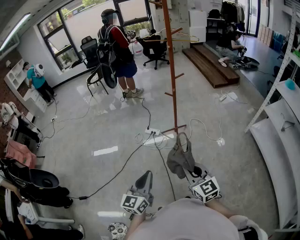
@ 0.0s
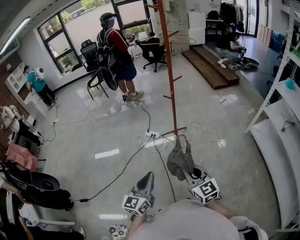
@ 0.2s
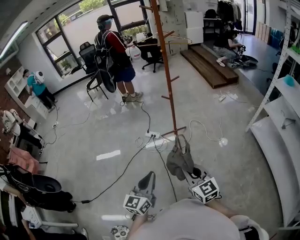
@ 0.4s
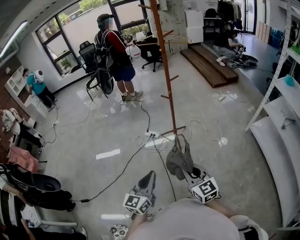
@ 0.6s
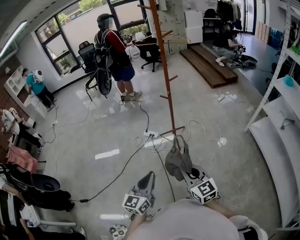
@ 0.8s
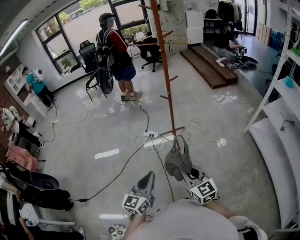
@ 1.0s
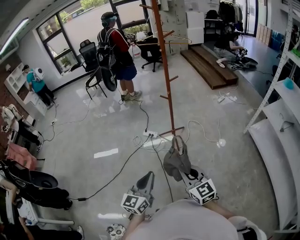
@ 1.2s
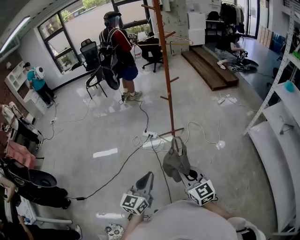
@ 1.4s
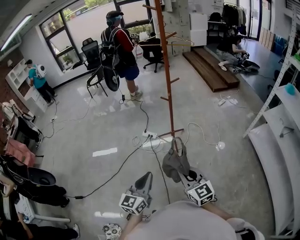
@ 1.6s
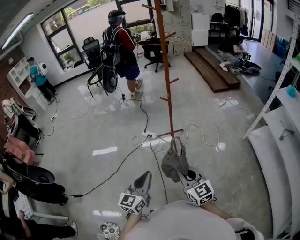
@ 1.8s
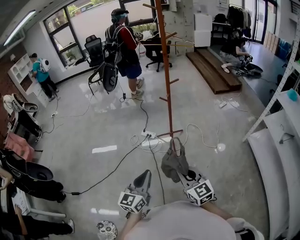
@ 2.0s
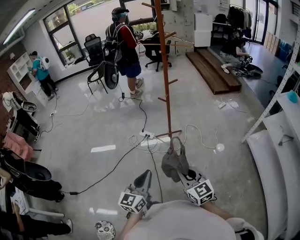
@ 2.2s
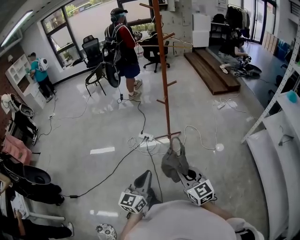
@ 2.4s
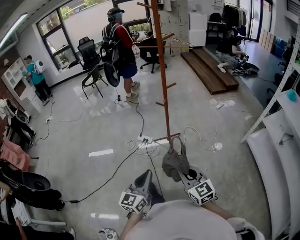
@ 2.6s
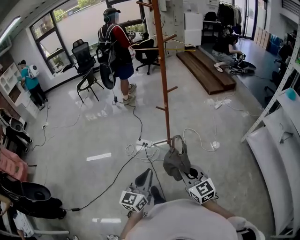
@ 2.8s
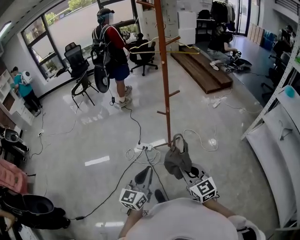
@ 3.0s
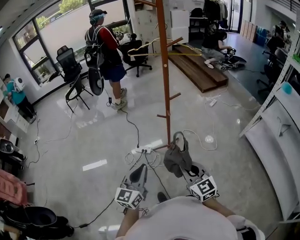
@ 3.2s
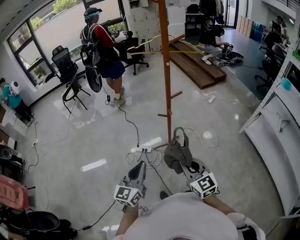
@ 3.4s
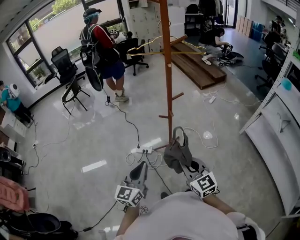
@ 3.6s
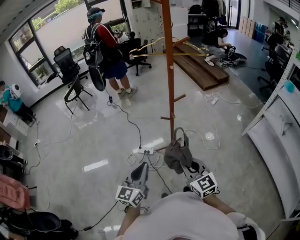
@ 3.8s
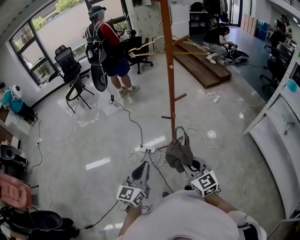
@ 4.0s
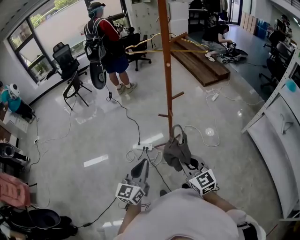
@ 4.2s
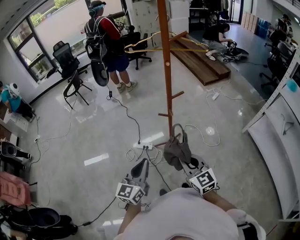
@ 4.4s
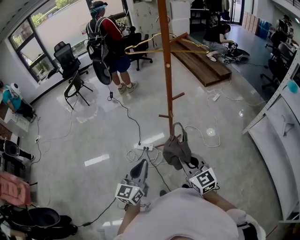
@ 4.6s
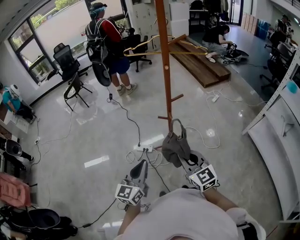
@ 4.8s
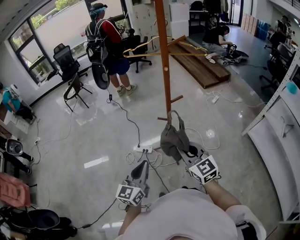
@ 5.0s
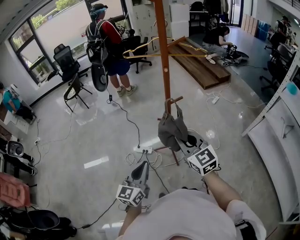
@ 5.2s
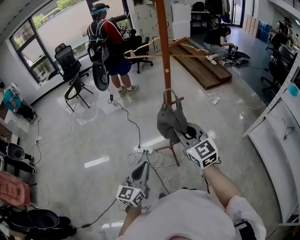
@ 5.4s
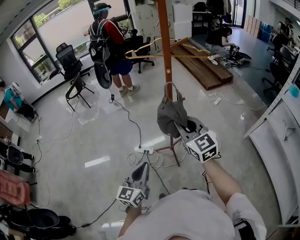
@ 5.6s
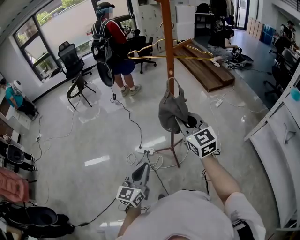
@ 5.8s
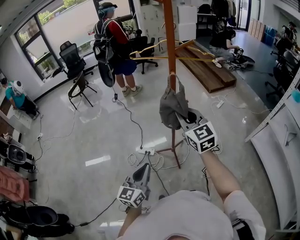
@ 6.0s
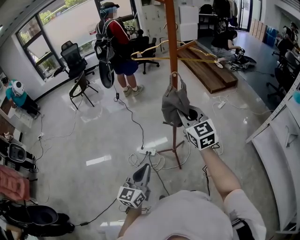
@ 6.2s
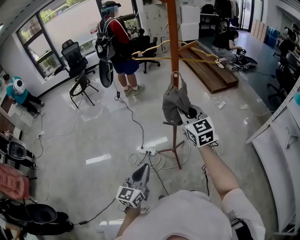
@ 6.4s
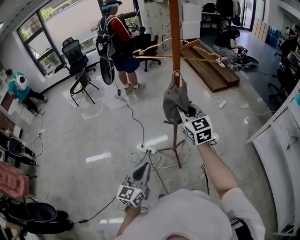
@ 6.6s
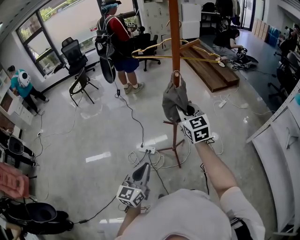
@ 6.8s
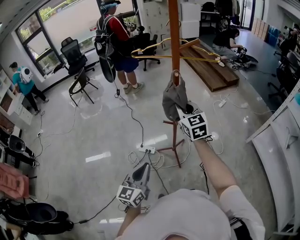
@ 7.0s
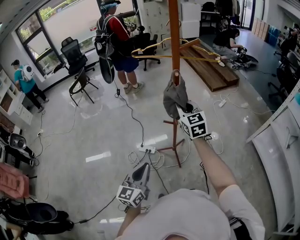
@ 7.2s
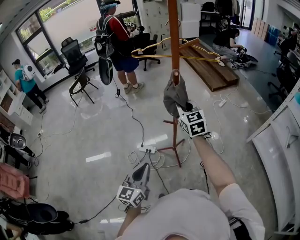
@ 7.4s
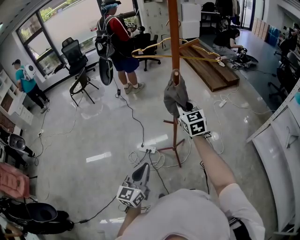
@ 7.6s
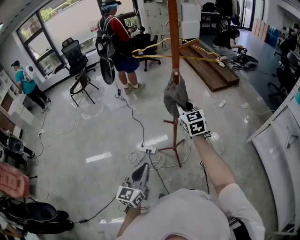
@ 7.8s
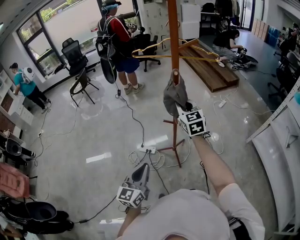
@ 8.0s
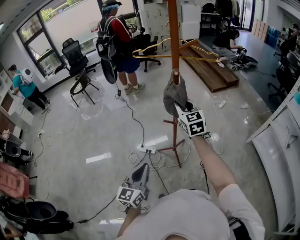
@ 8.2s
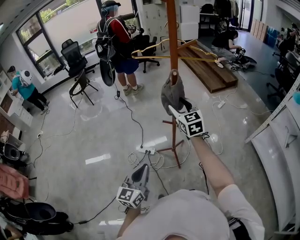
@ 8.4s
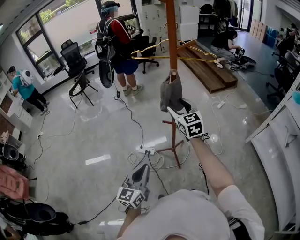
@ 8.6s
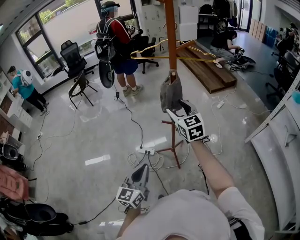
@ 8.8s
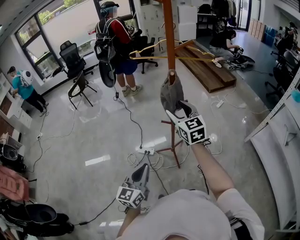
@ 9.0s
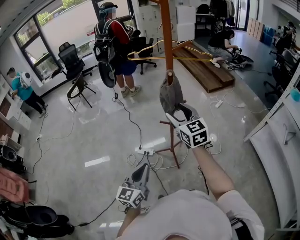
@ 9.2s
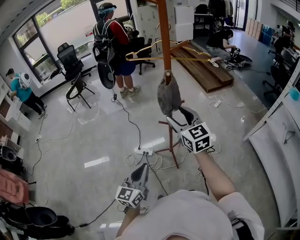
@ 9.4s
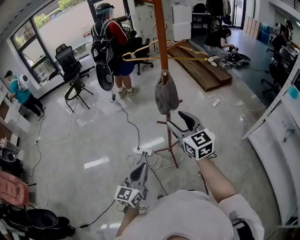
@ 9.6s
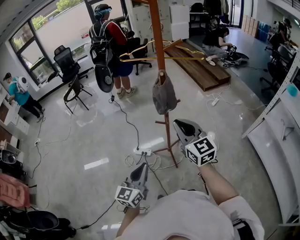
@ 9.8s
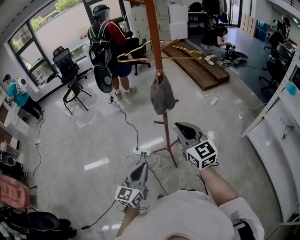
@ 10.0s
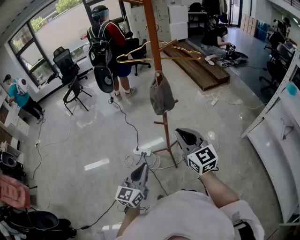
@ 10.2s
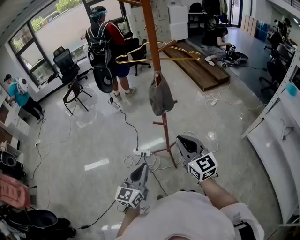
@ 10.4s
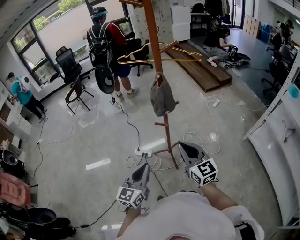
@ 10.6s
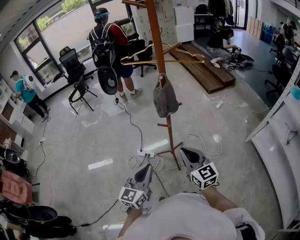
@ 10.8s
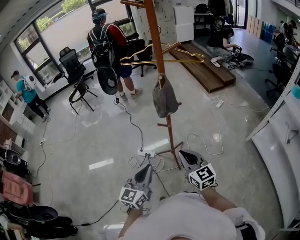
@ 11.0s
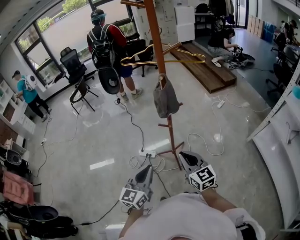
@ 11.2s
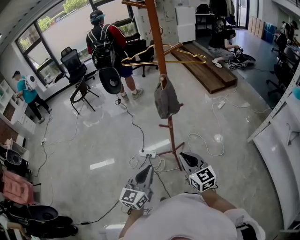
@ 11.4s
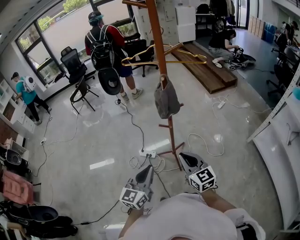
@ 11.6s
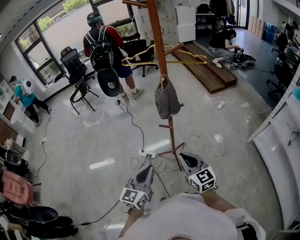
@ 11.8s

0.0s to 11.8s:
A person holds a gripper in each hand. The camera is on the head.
0.0s to 1.4s: The left gripper goes some 5 cm to the right.
1.4s to 3.0s: The grippers both shift forward by approximately 25 cm.
3.0s to 4.4s: Both grippers travel together forward, some 10 cm.
4.4s to 6.0s: The right gripper heads forward and upward, covering approximately 25 cm.
6.0s to 7.4s: The right gripper shifts about 10 cm forward and downward.
7.4s to 8.8s: The right gripper opens its fingers.
8.8s to 10.4s: The right gripper travels backward by approximately 15 cm, and closes its fingers.
10.4s to 11.8s: The right gripper heads downward, covering about 10 cm.

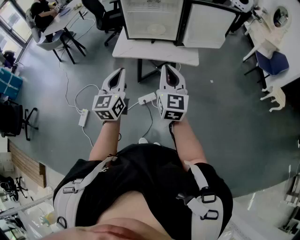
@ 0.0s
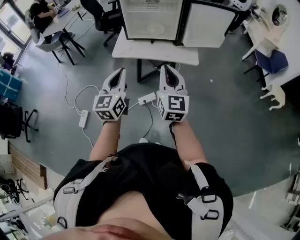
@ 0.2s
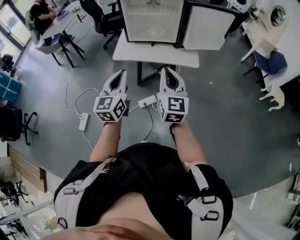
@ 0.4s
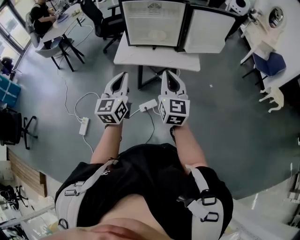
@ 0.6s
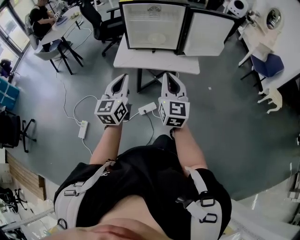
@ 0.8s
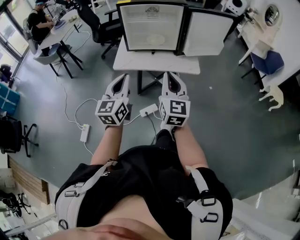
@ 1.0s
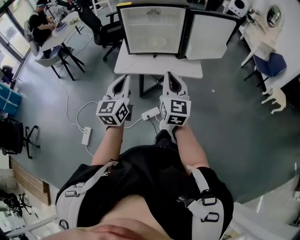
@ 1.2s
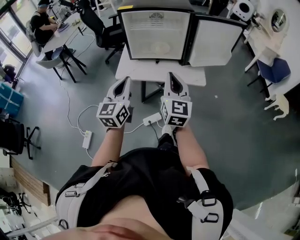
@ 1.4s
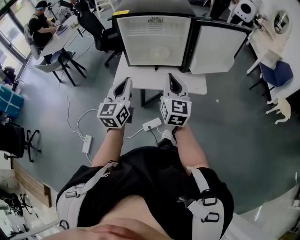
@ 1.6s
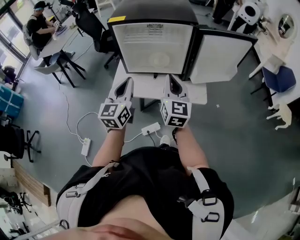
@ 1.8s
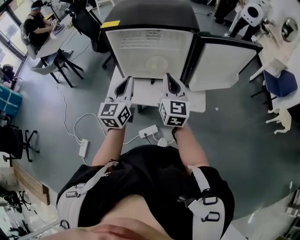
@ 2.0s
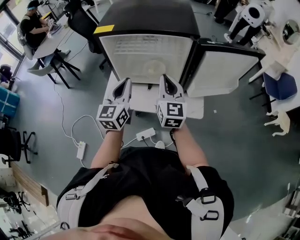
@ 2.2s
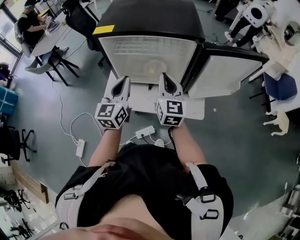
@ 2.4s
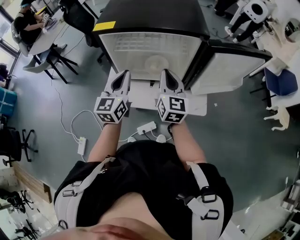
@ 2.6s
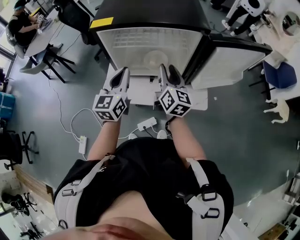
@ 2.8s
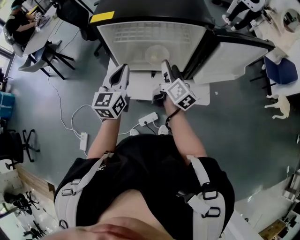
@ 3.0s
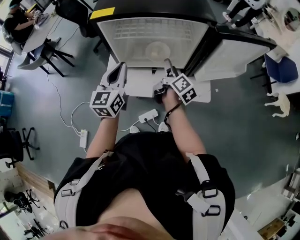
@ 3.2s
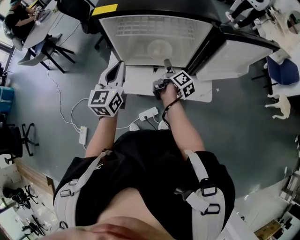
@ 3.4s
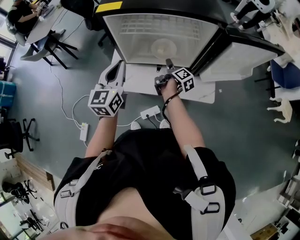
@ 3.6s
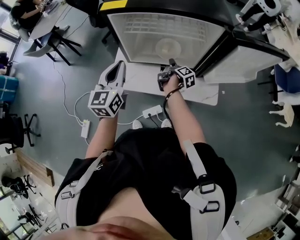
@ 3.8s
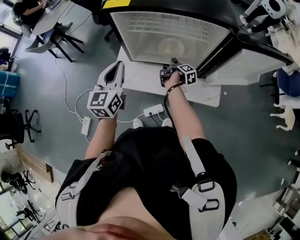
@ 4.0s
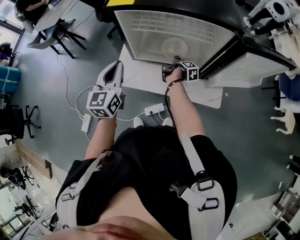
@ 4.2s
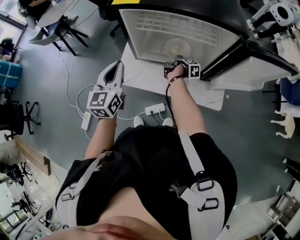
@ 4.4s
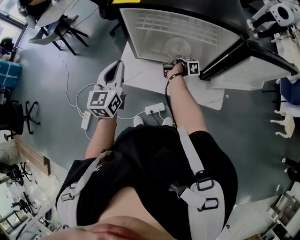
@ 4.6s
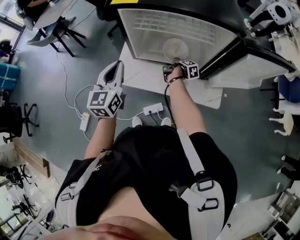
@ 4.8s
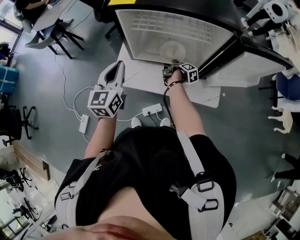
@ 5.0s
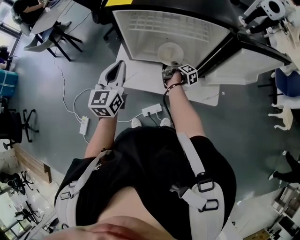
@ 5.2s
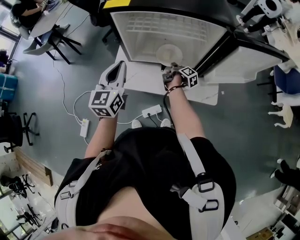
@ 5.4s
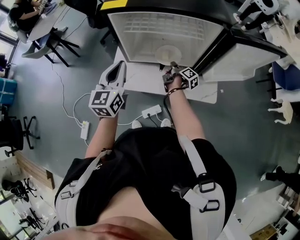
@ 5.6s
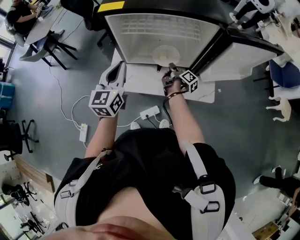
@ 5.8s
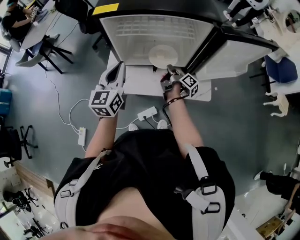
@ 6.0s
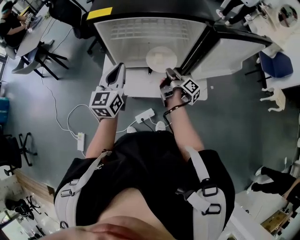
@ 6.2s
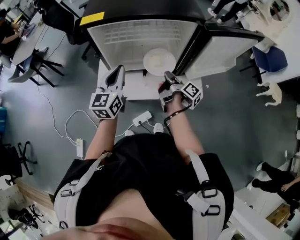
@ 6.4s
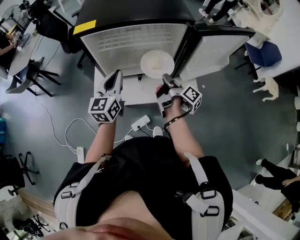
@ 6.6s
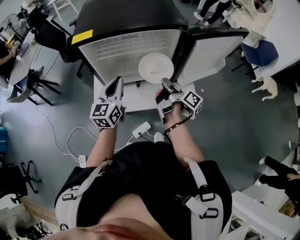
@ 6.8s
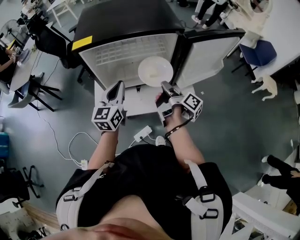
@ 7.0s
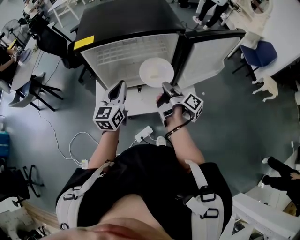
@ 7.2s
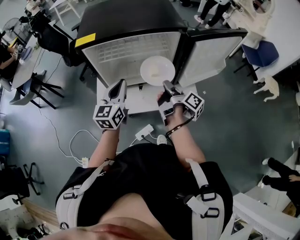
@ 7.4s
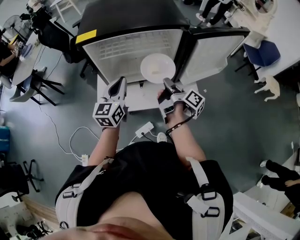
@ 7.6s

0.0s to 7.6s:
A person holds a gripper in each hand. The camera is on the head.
0.0s to 1.6s: The two grippers go roughly 20 cm forward.
1.6s to 3.0s: The grippers both shift forward by approximately 20 cm. The right gripper twists about 40 degrees clockwise, seen from behind, and opens up.
3.0s to 4.6s: The right gripper goes some 25 cm downward, and points its fingers roughly 40 degrees further downward, while the left gripper shifts about 10 cm to the left.
4.6s to 6.0s: The right gripper goes about 10 cm upward and backward, angles its fingers upward, by roughly 40 degrees, and closes. Meanwhile the left gripper travels to the right by some 5 cm.
6.0s to 7.6s: The left gripper travels to the right by some 5 cm. Meanwhile the right gripper moves upward and backward, approximately 15 cm.

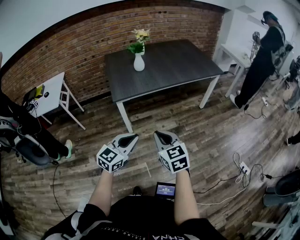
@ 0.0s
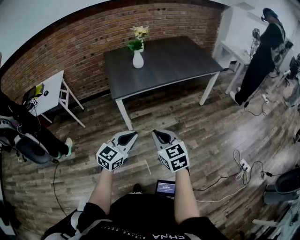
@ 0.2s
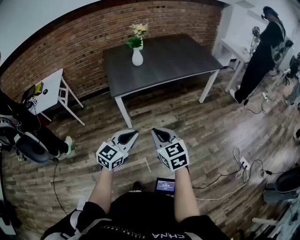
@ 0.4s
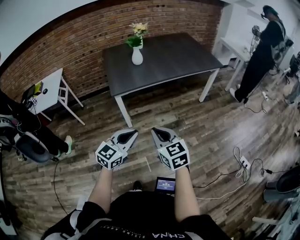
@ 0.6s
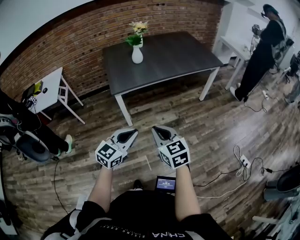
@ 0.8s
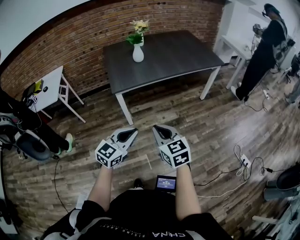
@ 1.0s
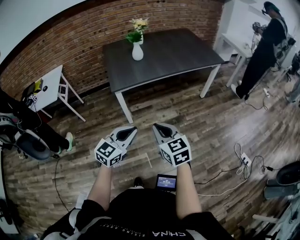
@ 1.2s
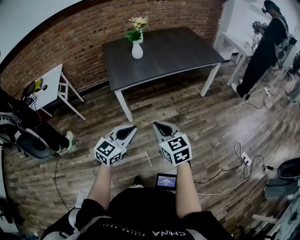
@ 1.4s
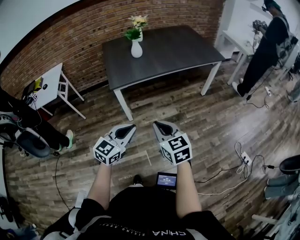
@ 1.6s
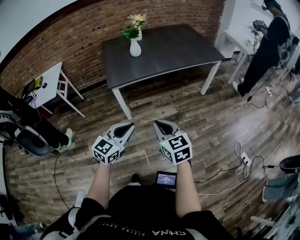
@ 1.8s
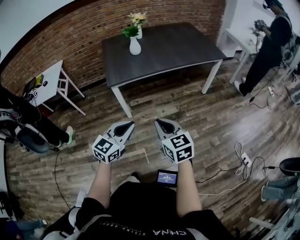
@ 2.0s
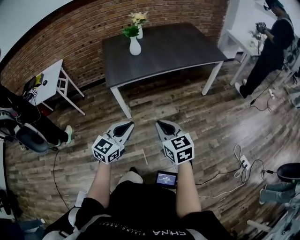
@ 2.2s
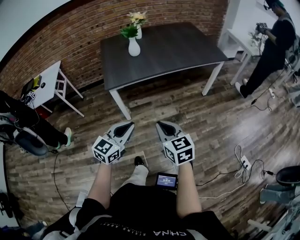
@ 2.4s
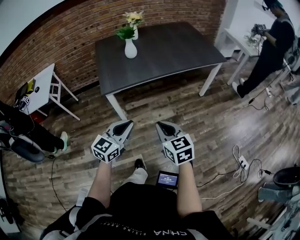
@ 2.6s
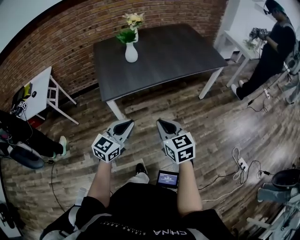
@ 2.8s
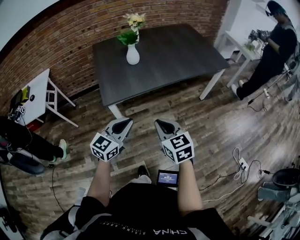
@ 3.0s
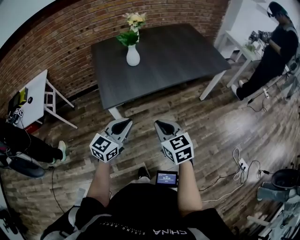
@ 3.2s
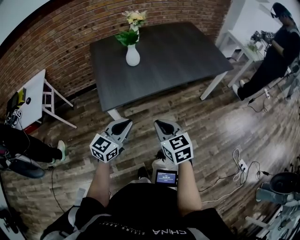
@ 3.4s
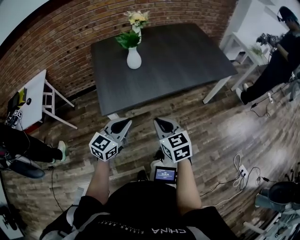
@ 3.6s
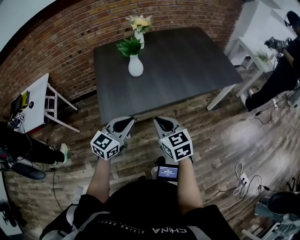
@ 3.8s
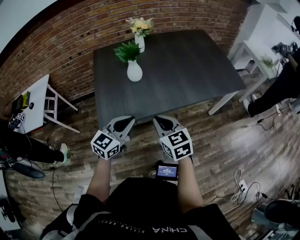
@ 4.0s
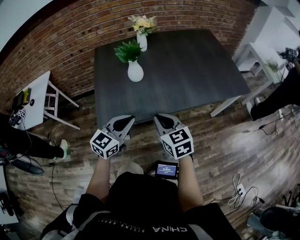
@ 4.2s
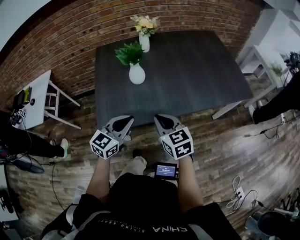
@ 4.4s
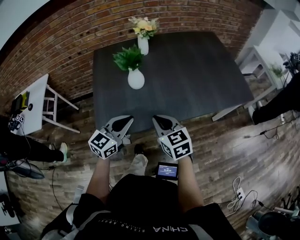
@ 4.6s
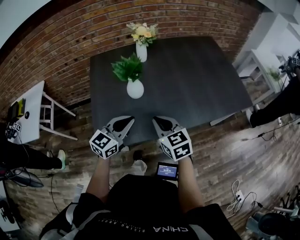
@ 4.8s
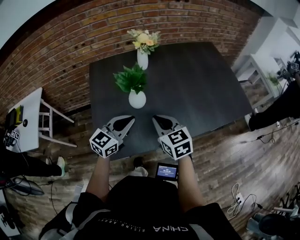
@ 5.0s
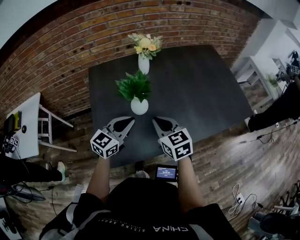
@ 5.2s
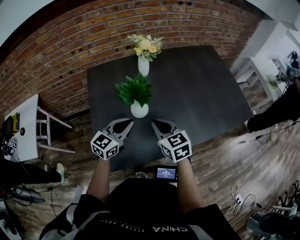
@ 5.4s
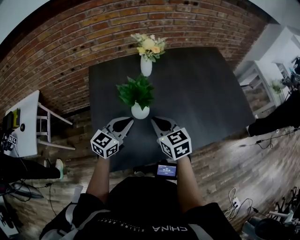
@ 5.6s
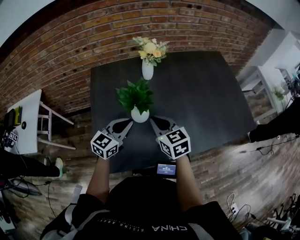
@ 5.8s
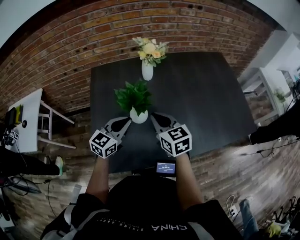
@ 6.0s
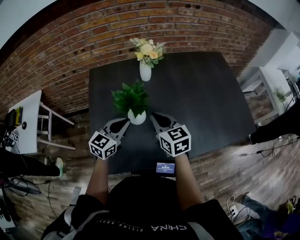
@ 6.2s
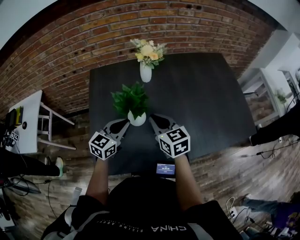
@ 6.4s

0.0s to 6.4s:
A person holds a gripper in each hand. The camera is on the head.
0.0s to 1.6s: The grippers stay close to where they were, moving slightly.
1.6s to 3.2s: Both grippers travel together forward, some 25 cm.
3.2s to 4.8s: Both grippers travel together forward, roughly 35 cm.
4.8s to 6.4s: Both grippers move forward, about 20 cm.
